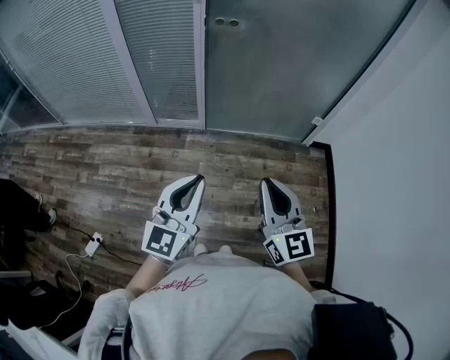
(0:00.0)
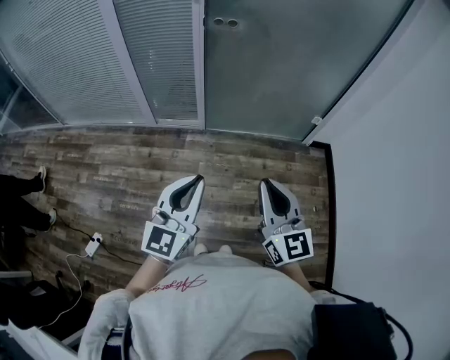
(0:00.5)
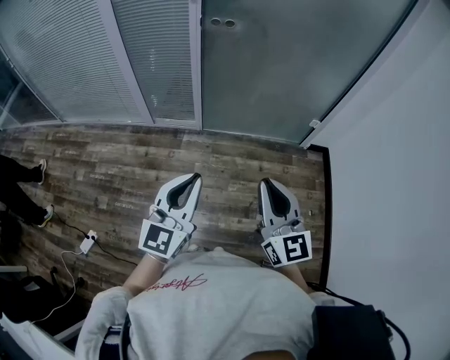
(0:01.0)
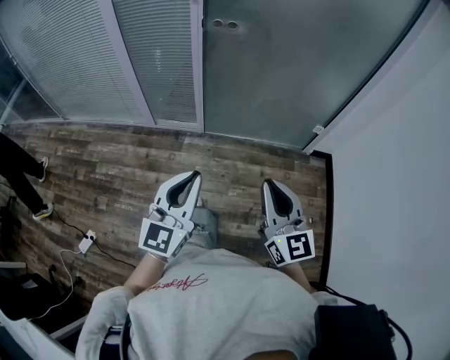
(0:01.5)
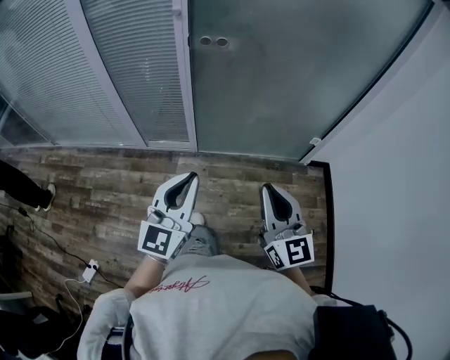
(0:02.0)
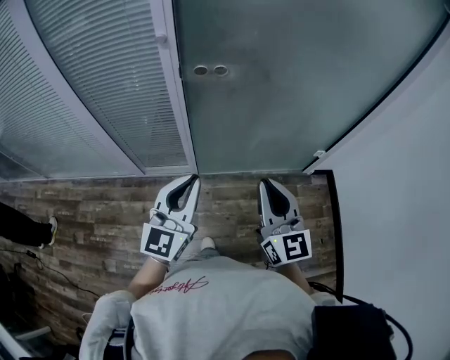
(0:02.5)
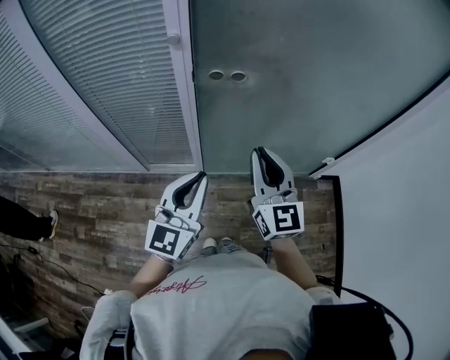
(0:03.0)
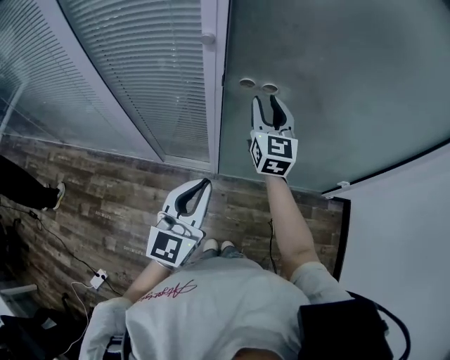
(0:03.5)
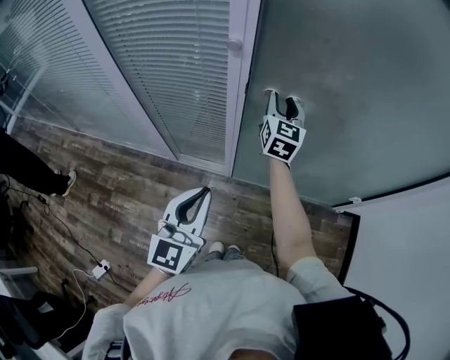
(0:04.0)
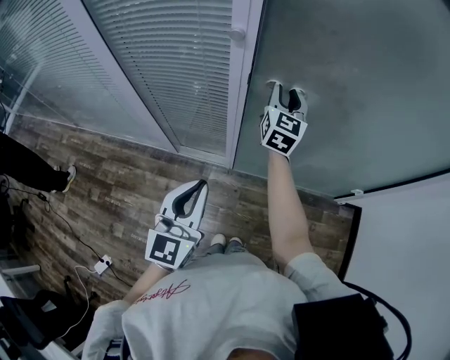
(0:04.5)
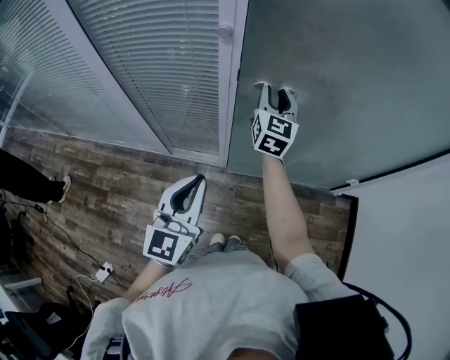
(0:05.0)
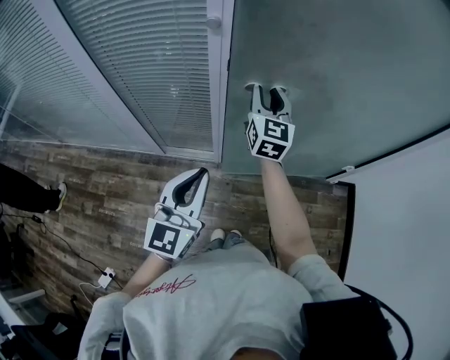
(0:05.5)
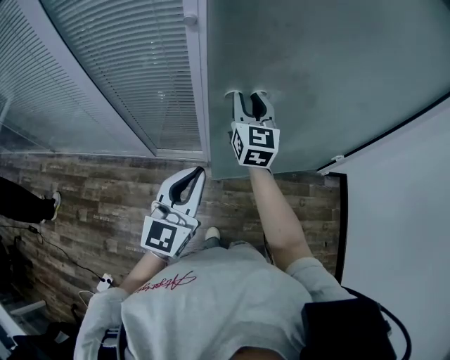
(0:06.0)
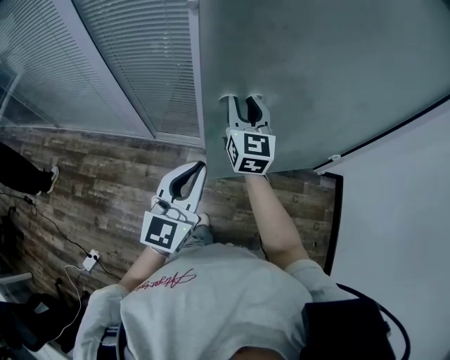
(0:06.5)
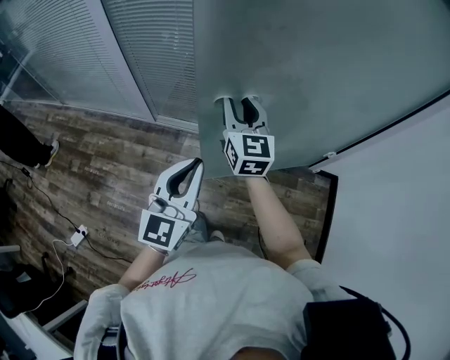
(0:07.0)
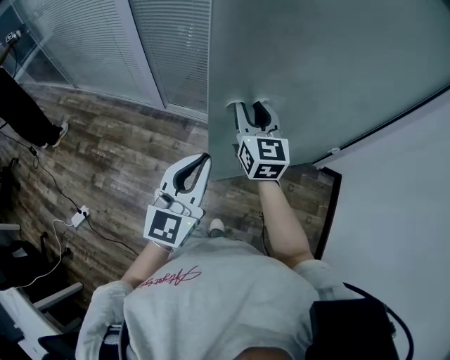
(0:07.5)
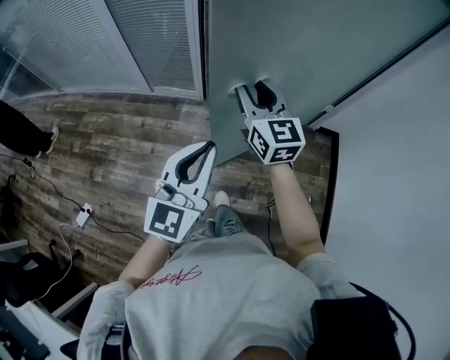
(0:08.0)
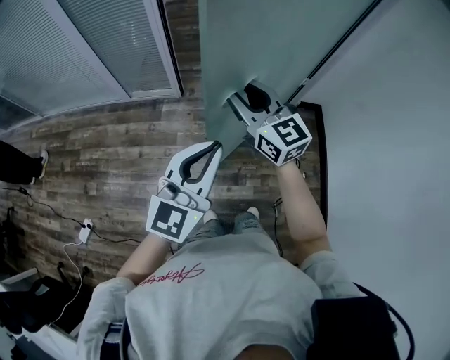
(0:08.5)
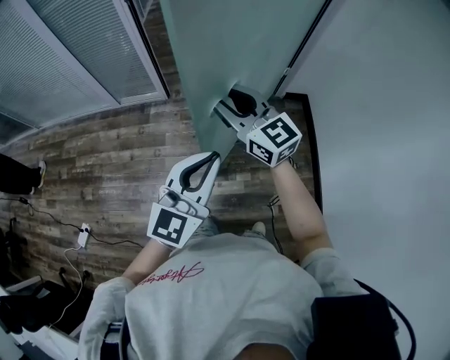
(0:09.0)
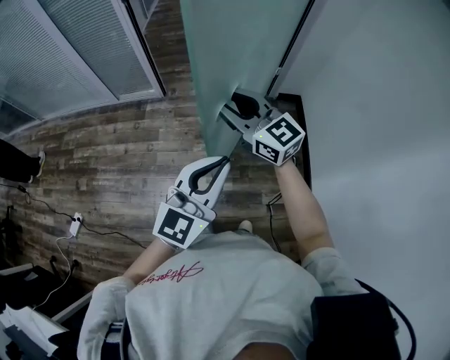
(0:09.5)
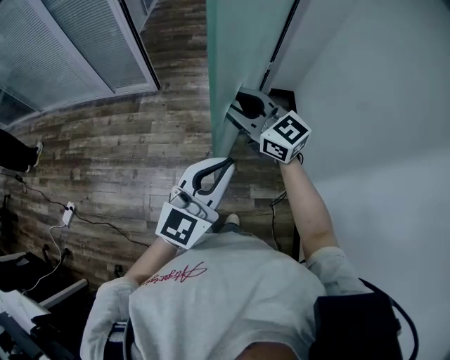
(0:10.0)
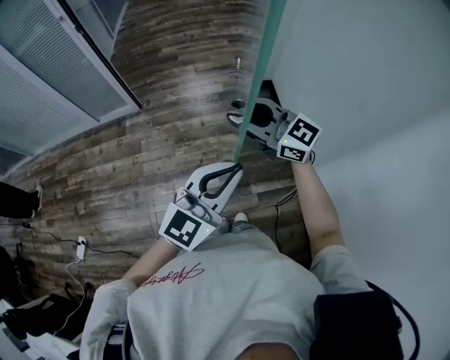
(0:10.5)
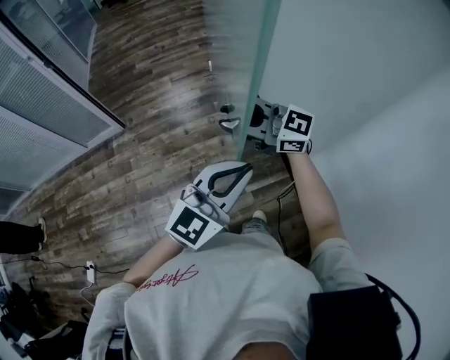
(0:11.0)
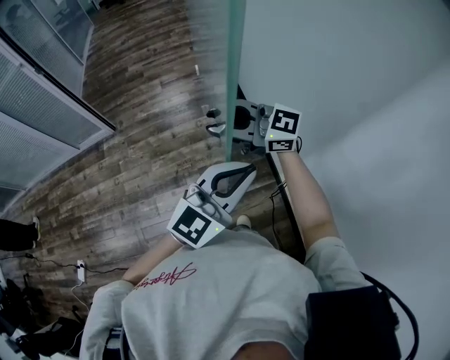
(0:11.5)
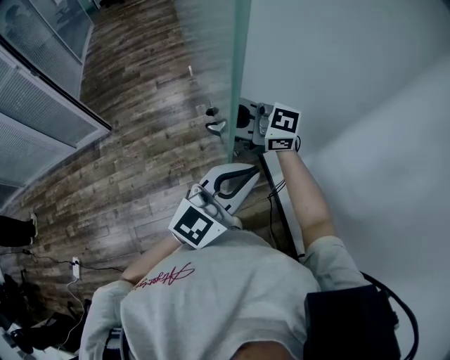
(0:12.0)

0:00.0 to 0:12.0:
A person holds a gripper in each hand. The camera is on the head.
0:00.0 to 0:02.0: The two grippers go approximately 15 cm forward.
0:02.0 to 0:04.0: The right gripper moves forward, about 50 cm, and opens its fingers; the left gripper moves forward and to the left, about 25 cm.
0:04.0 to 0:06.0: The right gripper is displaced backward by approximately 15 cm.
0:06.0 to 0:08.0: The left gripper shifts about 30 cm backward and to the right, while the right gripper shifts some 30 cm backward, and rotates about 20 degrees.
0:08.0 to 0:10.0: The right gripper heads backward and to the right, covering approximately 35 cm, and swivels roughly 20 degrees. Meanwhile the left gripper heads to the right and backward, covering about 40 cm.
0:10.0 to 0:12.0: The left gripper moves some 30 cm, and rotates approximately 30 degrees. Meanwhile the right gripper moves some 25 cm.

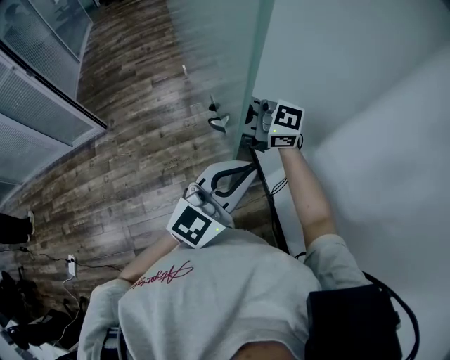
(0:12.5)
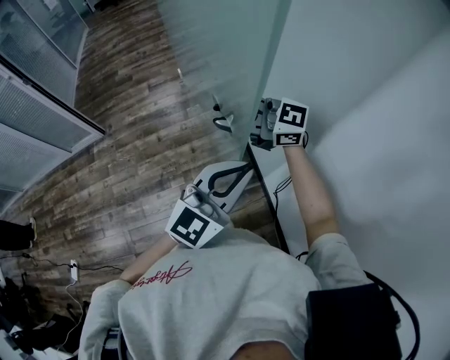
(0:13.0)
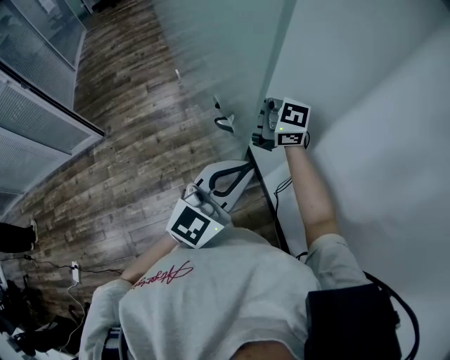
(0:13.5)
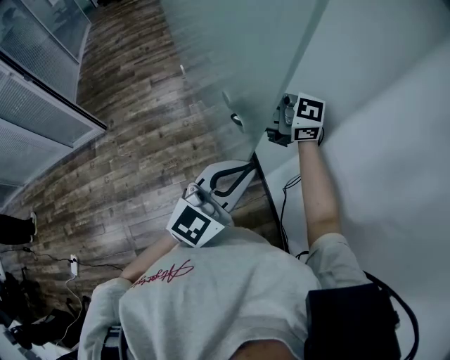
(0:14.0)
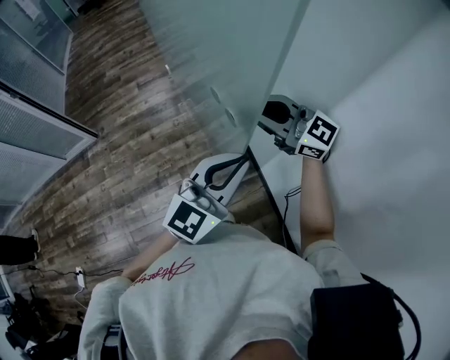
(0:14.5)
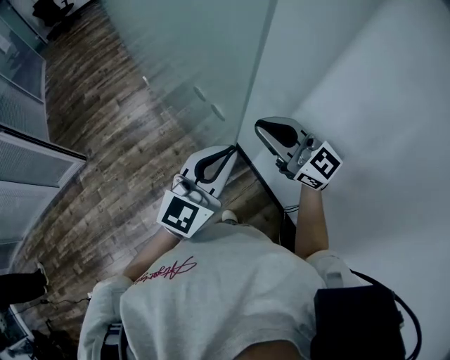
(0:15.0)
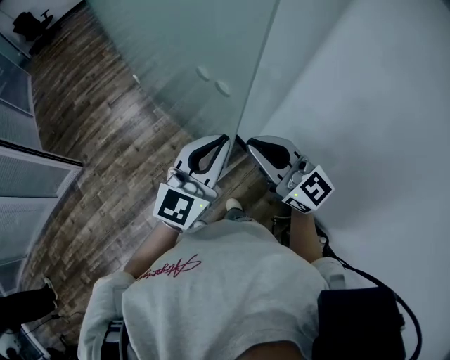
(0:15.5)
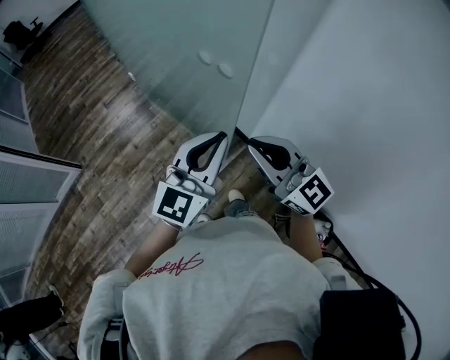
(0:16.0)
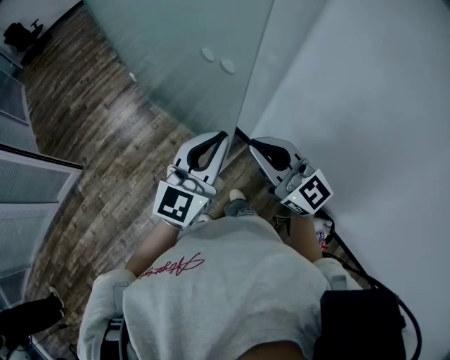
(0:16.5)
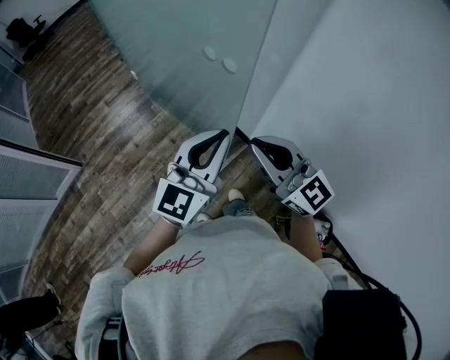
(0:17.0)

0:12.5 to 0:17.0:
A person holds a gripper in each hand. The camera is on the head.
0:12.5 to 0:14.5: The right gripper moves some 10 cm, and swivels some 20 degrees.
0:14.5 to 0:17.0: The right gripper goes some 20 cm backward, and turns by about 40 degrees. Meanwhile the left gripper moves to the left and backward, about 10 cm.

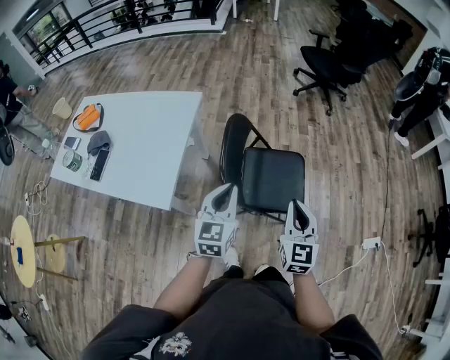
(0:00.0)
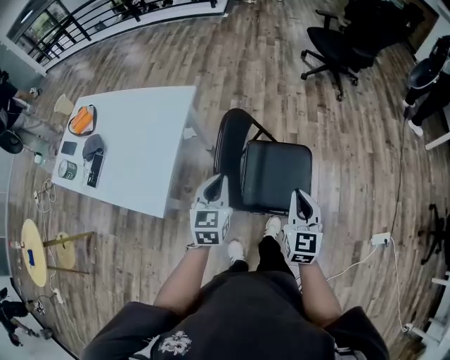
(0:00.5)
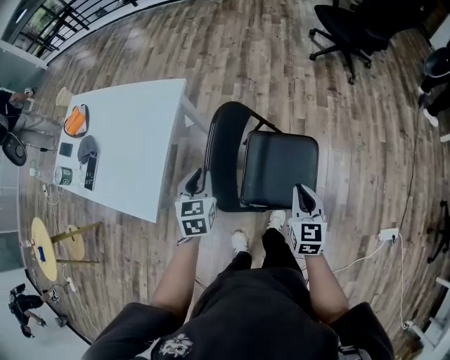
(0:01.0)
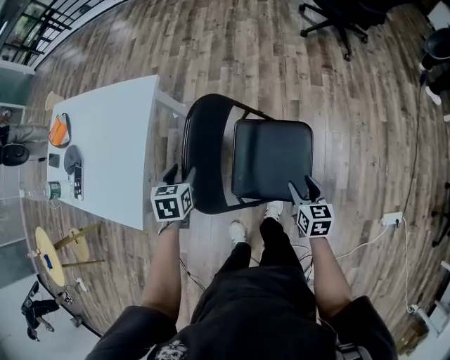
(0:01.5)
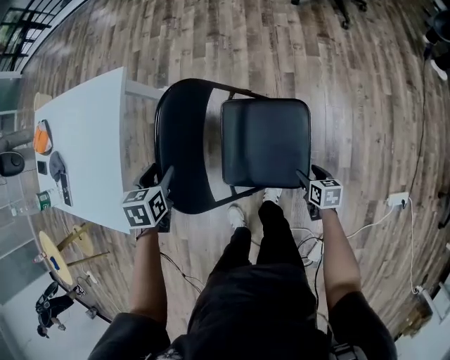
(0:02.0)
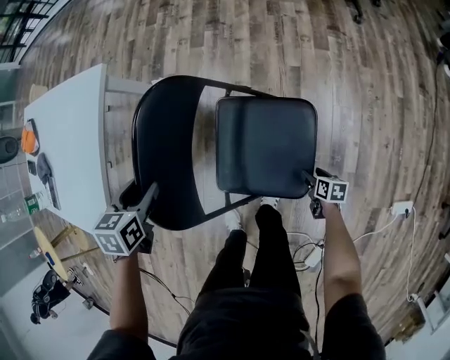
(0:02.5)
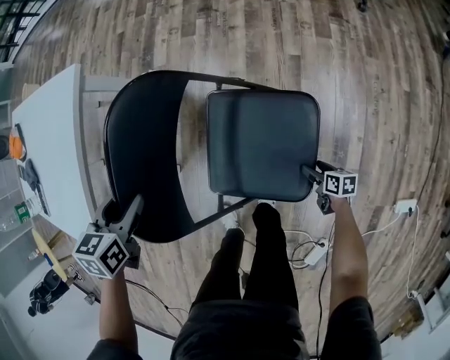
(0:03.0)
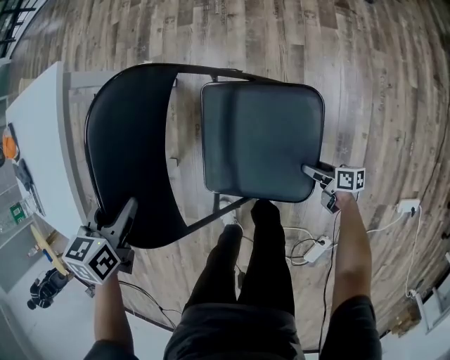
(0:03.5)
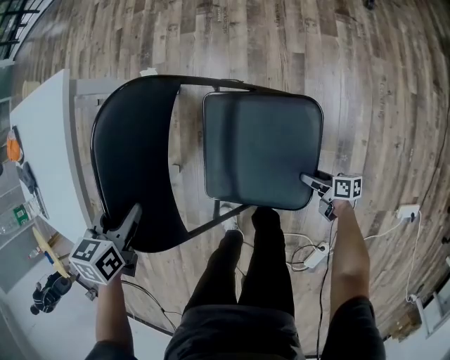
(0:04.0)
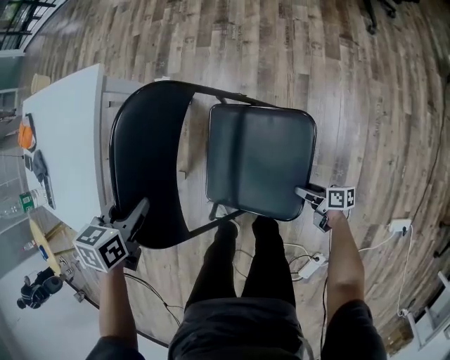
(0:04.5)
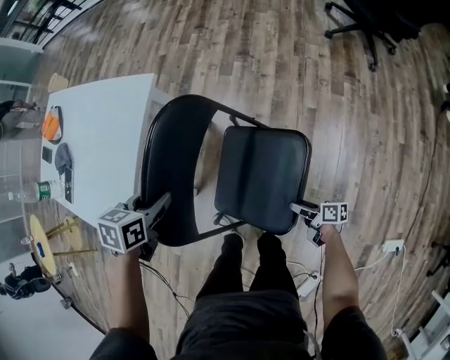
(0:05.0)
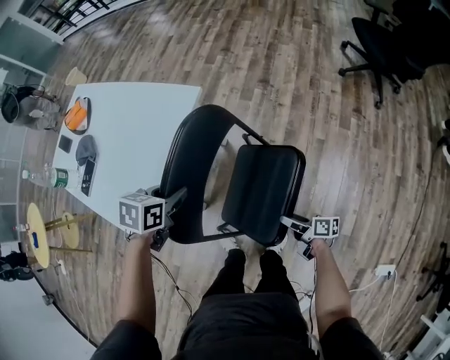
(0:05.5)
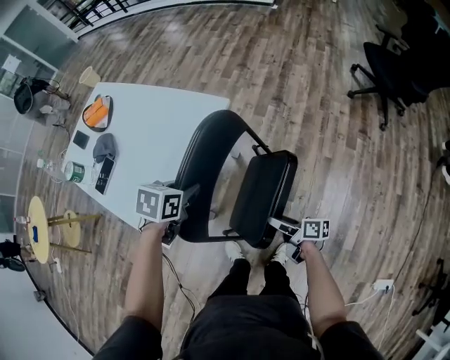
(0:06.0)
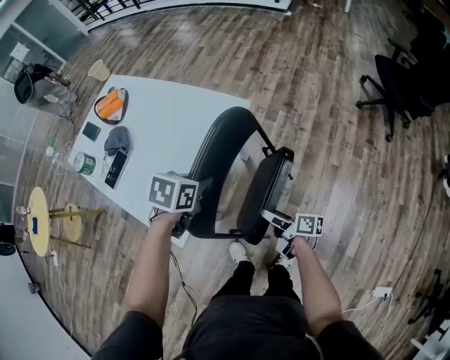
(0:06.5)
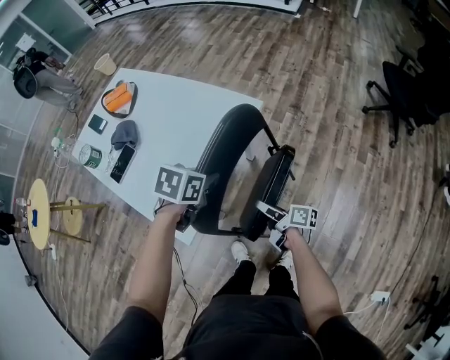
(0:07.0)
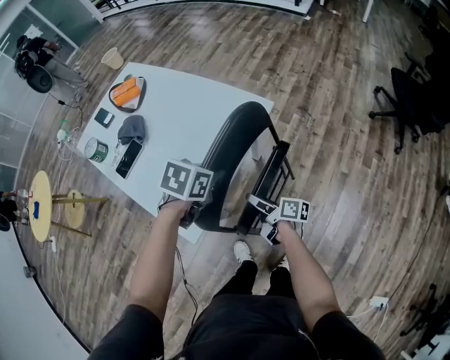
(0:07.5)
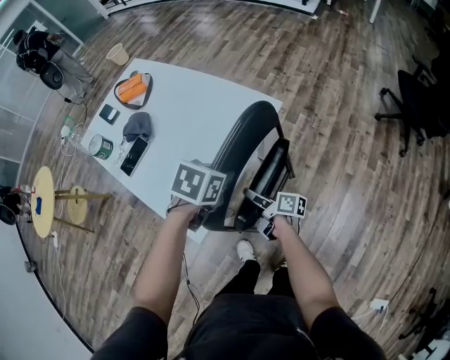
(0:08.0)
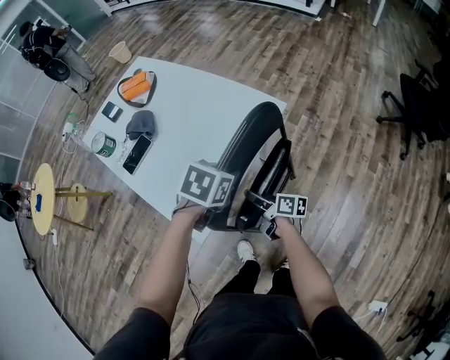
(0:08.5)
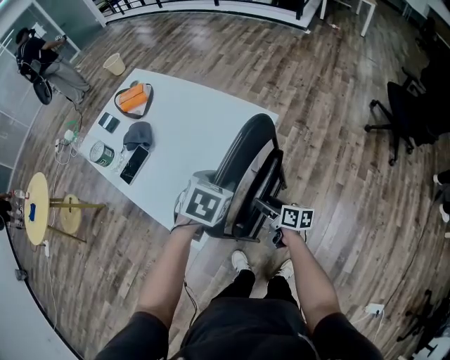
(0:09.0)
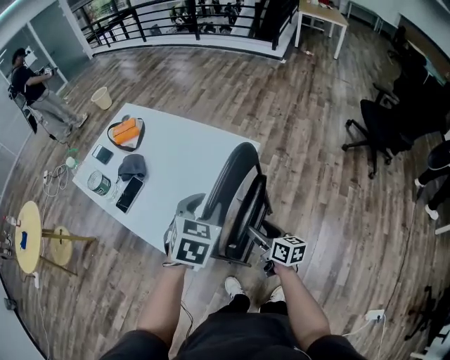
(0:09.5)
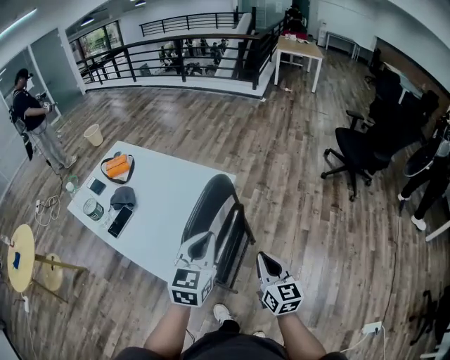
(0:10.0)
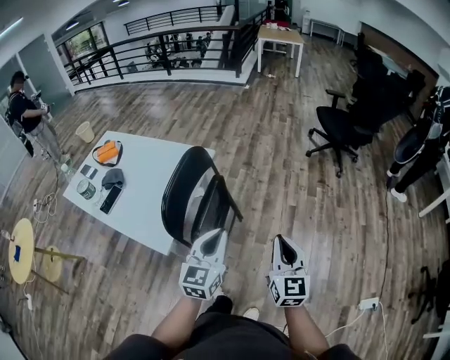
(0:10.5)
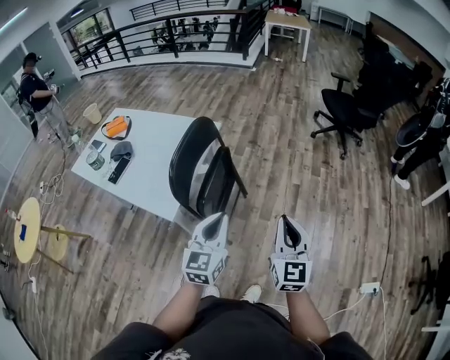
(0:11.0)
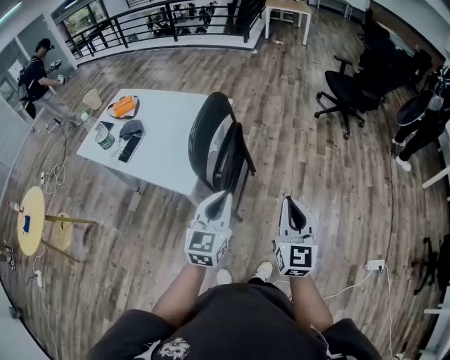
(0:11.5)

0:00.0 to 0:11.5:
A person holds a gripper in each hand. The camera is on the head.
0:00.0 to 0:02.0: The left gripper shifts roughly 30 cm forward and downward, angles its fingers downward, by some 50 degrees, and opens its fingers; the right gripper shifts roughly 50 cm downward, to the right and forward, tips its fingers downward by approximately 40 degrees, and opens its fingers.
0:02.0 to 0:04.0: The right gripper moves downward, about 20 cm, and turns by approximately 40 degrees. The left gripper heads downward, covering about 5 cm.
0:04.0 to 0:06.0: The right gripper shifts roughly 50 cm upward, to the left and forward; the left gripper travels upward and to the left by approximately 25 cm, and closes.
0:06.0 to 0:07.5: The right gripper is displaced to the left and forward by some 20 cm. The left gripper shifts approximately 5 cm to the left.
0:07.5 to 0:09.5: Both grippers travel together upward, about 10 cm. The right gripper swivels some 40 degrees, while the left gripper rotates some 30 degrees.
0:09.5 to 0:11.5: The left gripper shifts by some 35 cm, points its fingers approximately 30 degrees further upward, and closes up; the right gripper ends up some 40 cm from where it was, rotates some 60 degrees, and closes its fingers.
